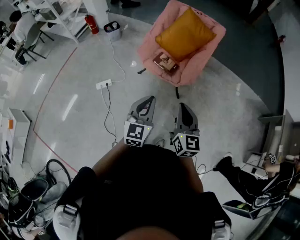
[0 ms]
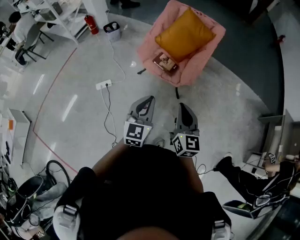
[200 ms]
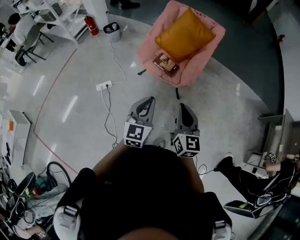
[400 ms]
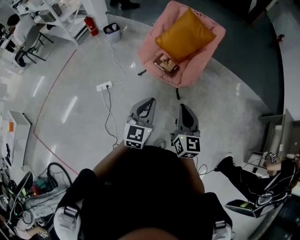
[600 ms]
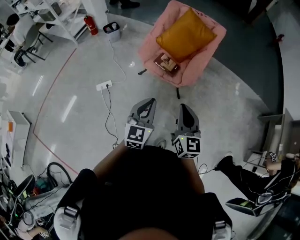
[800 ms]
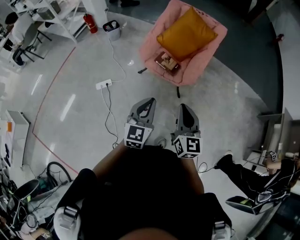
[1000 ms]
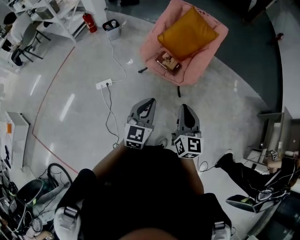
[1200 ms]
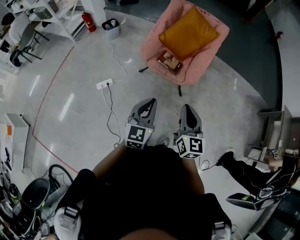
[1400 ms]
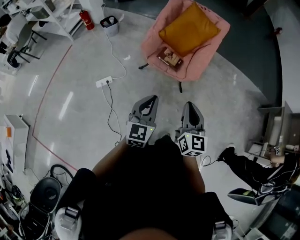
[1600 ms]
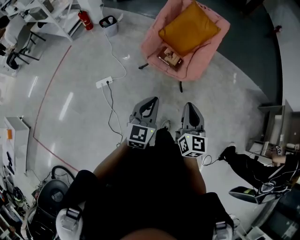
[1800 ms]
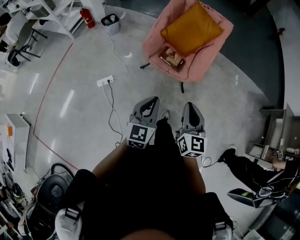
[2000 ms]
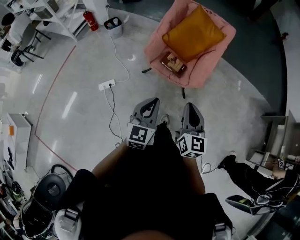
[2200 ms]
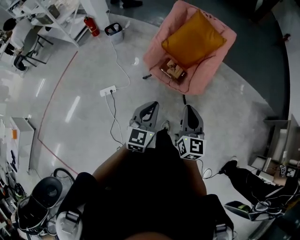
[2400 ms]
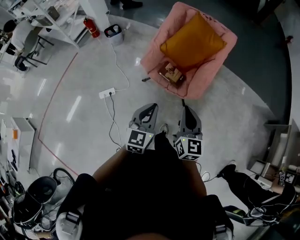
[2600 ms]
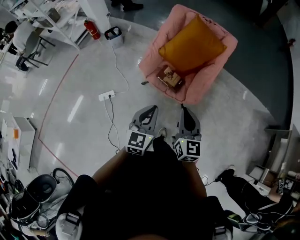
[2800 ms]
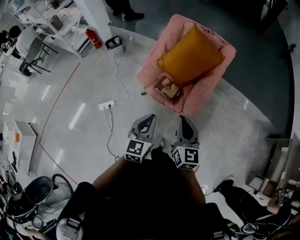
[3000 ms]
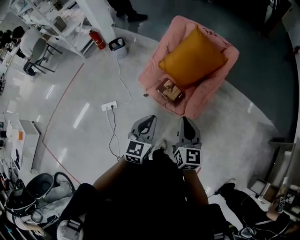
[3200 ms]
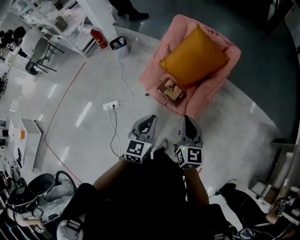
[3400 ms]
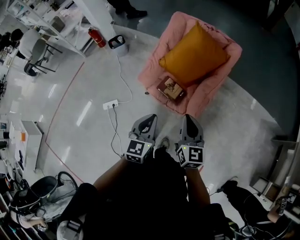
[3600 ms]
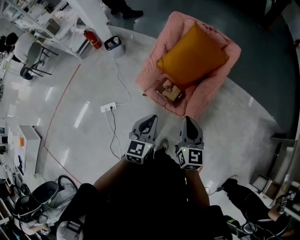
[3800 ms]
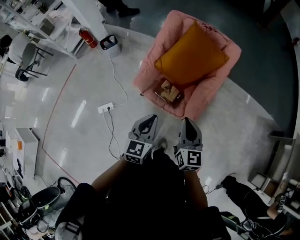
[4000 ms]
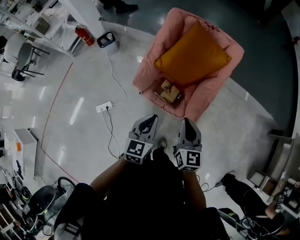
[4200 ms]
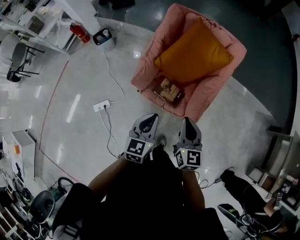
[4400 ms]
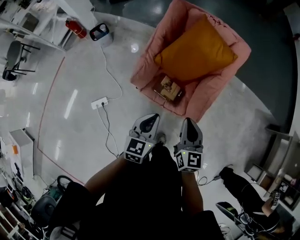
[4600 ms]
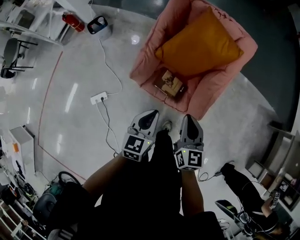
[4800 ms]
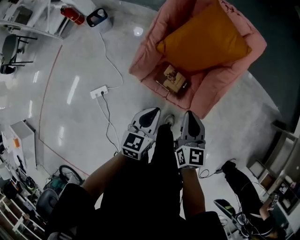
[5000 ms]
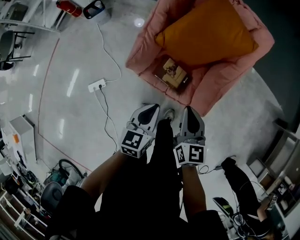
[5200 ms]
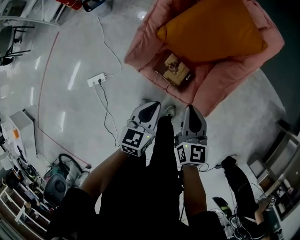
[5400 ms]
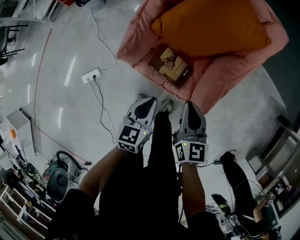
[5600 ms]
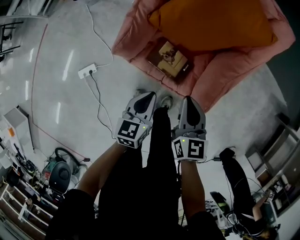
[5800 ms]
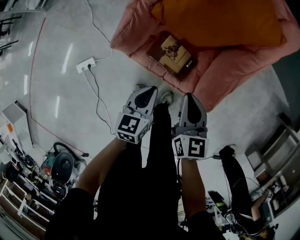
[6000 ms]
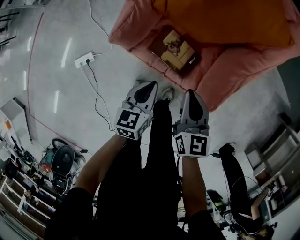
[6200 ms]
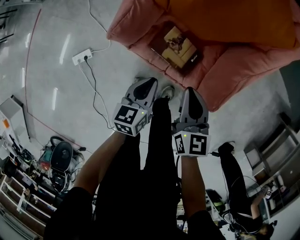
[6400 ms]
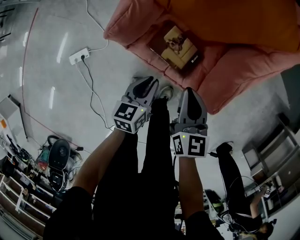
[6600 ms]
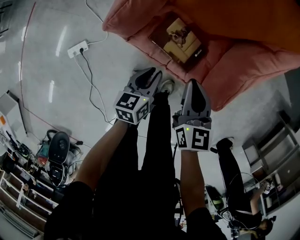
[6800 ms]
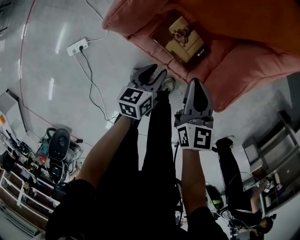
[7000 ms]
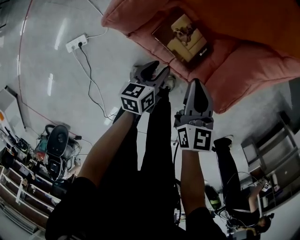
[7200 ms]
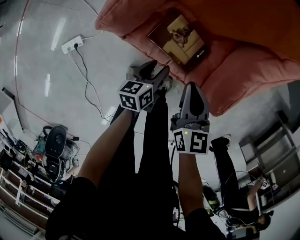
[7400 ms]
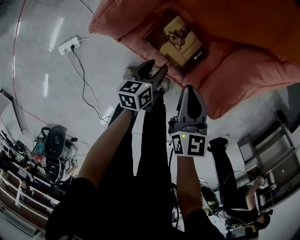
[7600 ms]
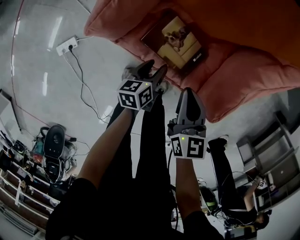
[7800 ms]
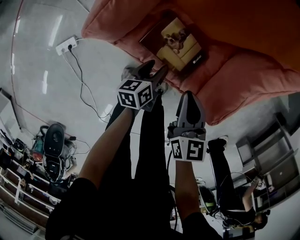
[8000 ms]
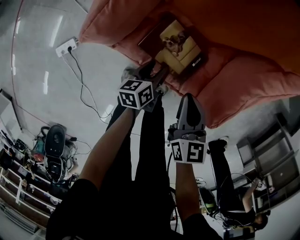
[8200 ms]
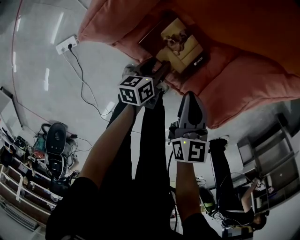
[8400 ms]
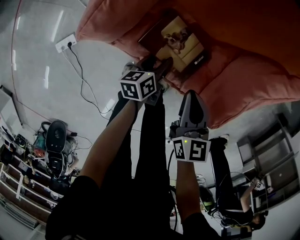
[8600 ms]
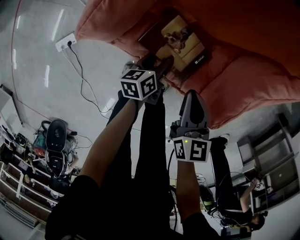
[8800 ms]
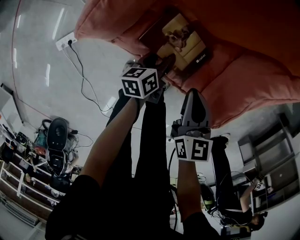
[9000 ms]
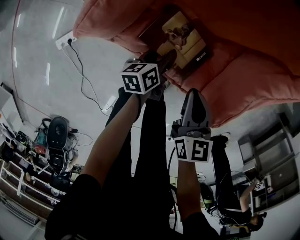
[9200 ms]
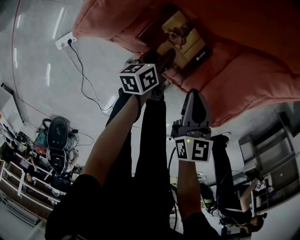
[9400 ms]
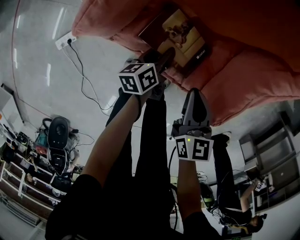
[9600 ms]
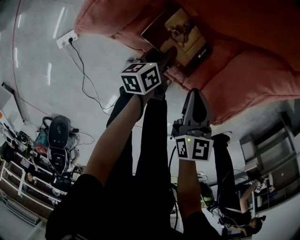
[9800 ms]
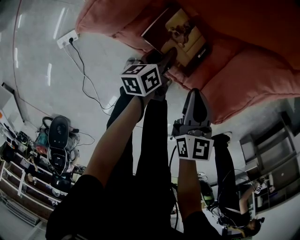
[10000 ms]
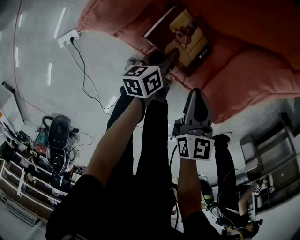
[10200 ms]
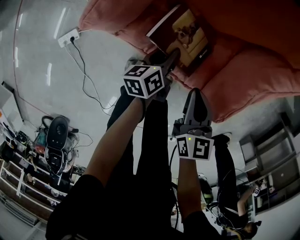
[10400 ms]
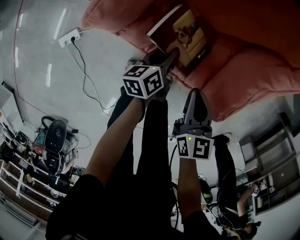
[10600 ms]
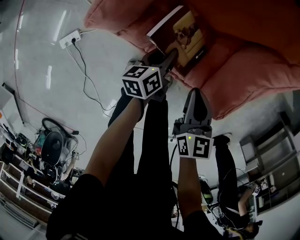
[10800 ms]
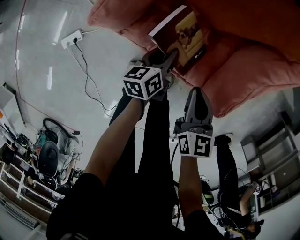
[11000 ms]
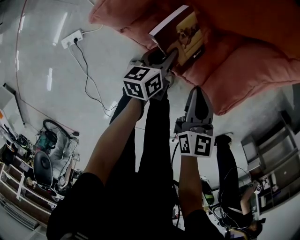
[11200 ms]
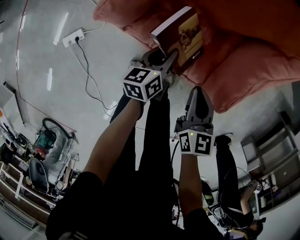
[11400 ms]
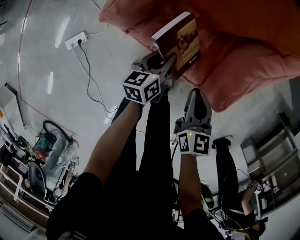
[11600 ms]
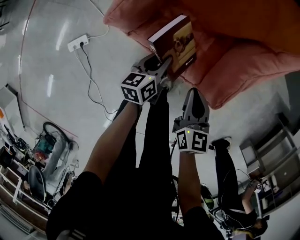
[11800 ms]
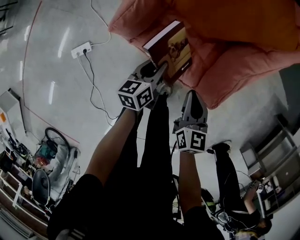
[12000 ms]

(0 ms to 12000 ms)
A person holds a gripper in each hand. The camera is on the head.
0 ms - 1600 ms: Both grippers travel together to the left, some 10 cm.
1600 ms - 3000 ms: The right gripper goes about 20 cm forward, while the left gripper is displaced forward and to the right by some 20 cm.
3000 ms - 4400 ms: Both grippers move forward, about 15 cm.
4400 ms - 6000 ms: The left gripper is displaced downward by roughly 30 cm, and turns by about 20 degrees. The right gripper goes about 30 cm downward and forward.
6000 ms - 7600 ms: The left gripper is displaced downward by approximately 20 cm, rotates roughly 20 degrees, and opens its fingers. The right gripper moves downward, some 15 cm.
7600 ms - 9000 ms: The left gripper is displaced downward by roughly 5 cm. Meanwhile the right gripper shifts by approximately 5 cm.
9000 ms - 10400 ms: The left gripper closes up.
10400 ms - 12000 ms: The right gripper travels upward by approximately 10 cm; the left gripper is displaced upward by approximately 15 cm.

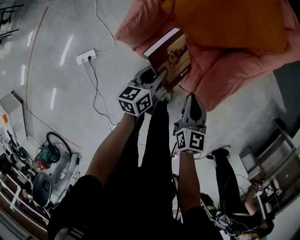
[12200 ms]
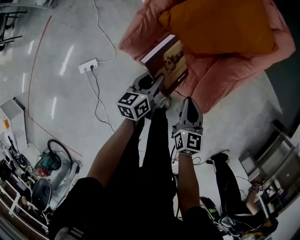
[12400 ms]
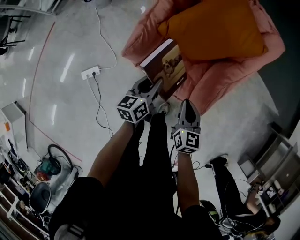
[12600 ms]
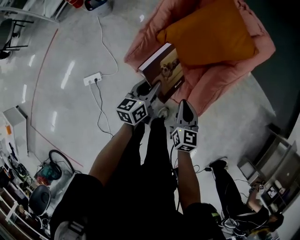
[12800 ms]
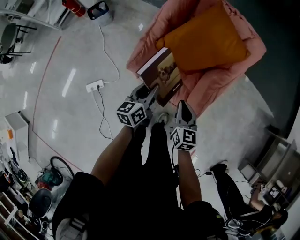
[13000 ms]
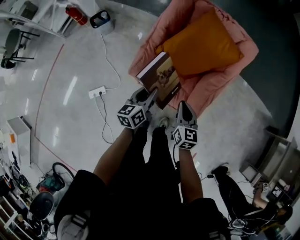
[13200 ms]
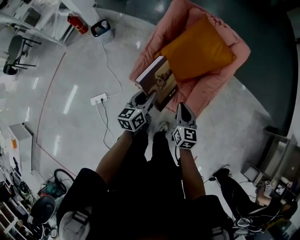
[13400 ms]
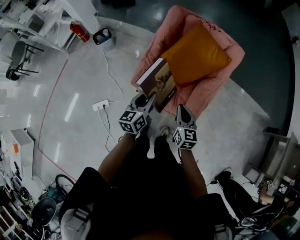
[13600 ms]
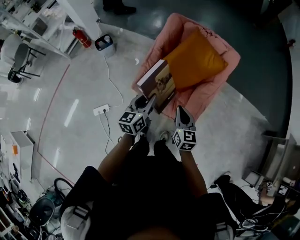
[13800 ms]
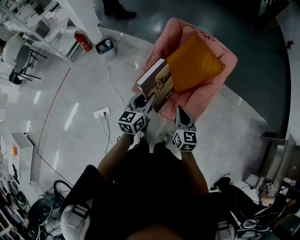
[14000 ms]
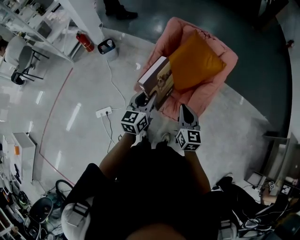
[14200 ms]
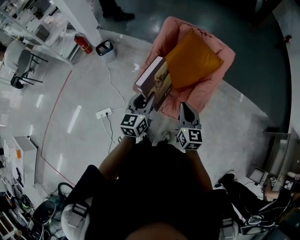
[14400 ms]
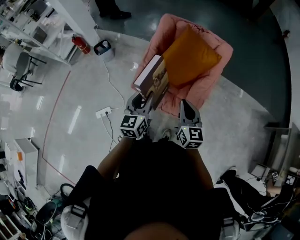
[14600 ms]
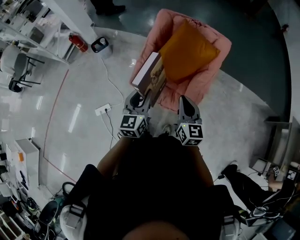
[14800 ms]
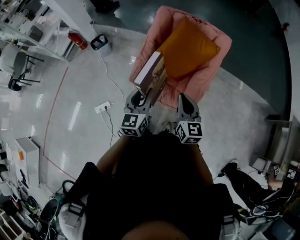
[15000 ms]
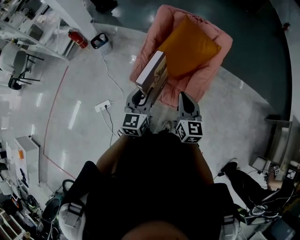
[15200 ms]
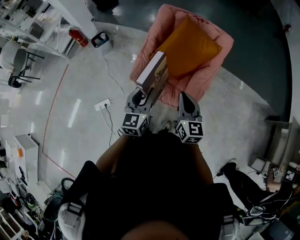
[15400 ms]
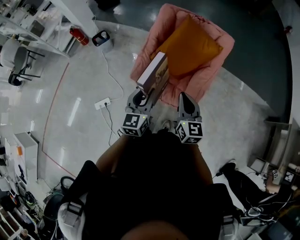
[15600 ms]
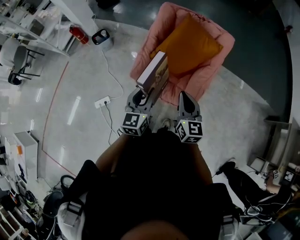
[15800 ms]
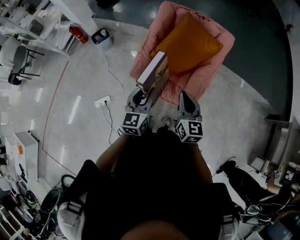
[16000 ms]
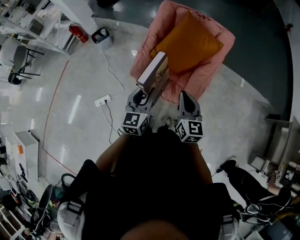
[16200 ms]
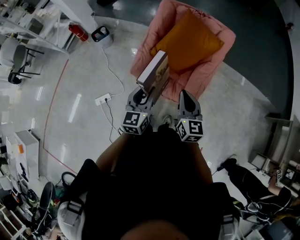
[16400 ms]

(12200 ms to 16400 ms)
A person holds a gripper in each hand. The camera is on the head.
12200 ms - 13600 ms: Both grippers travel together upward, about 25 cm.
13600 ms - 15000 ms: The left gripper travels upward and backward by about 10 cm. Meanwhile the right gripper travels upward by some 10 cm.
15000 ms - 16400 ms: The grippers make only small movements.

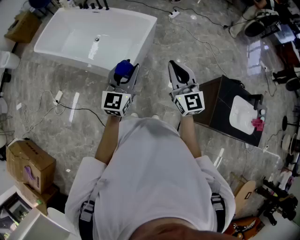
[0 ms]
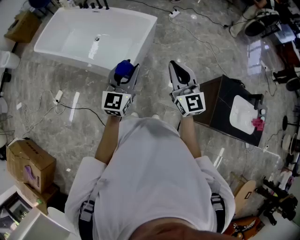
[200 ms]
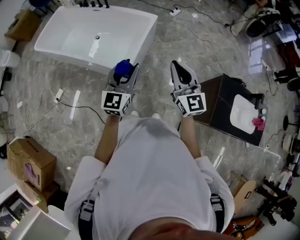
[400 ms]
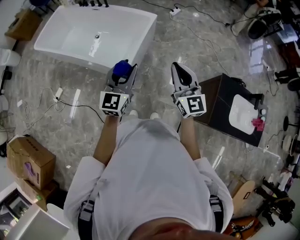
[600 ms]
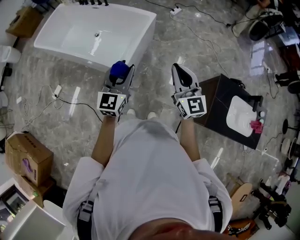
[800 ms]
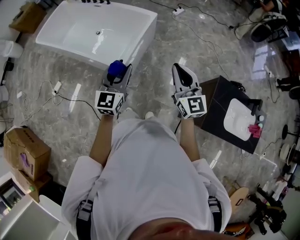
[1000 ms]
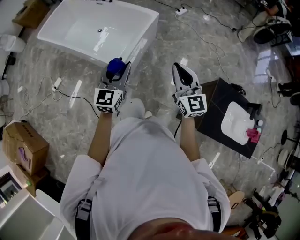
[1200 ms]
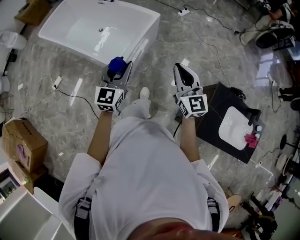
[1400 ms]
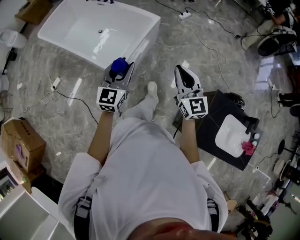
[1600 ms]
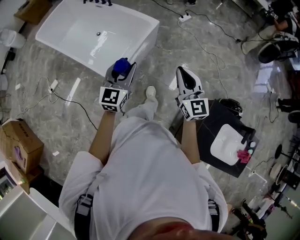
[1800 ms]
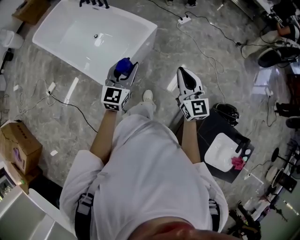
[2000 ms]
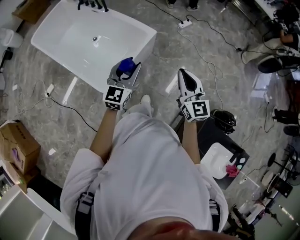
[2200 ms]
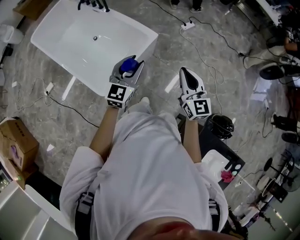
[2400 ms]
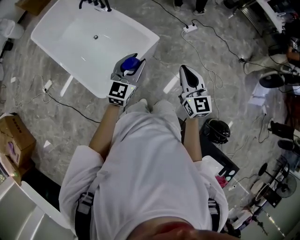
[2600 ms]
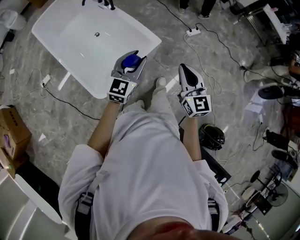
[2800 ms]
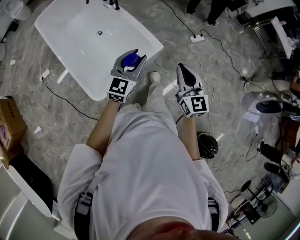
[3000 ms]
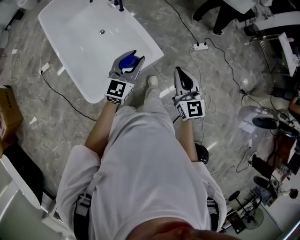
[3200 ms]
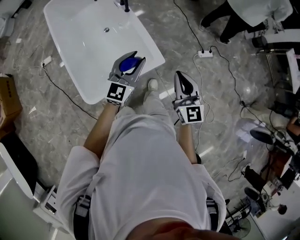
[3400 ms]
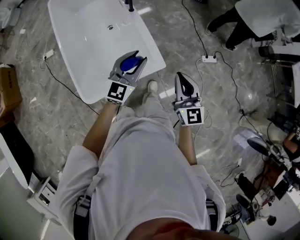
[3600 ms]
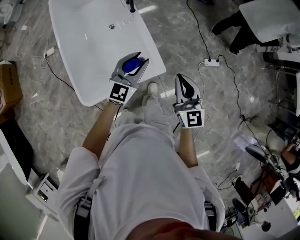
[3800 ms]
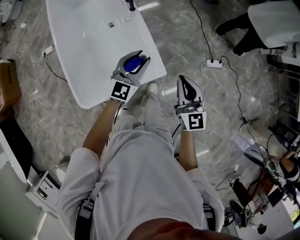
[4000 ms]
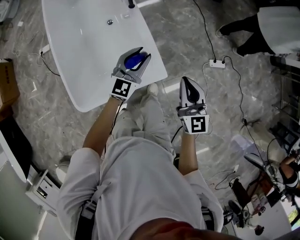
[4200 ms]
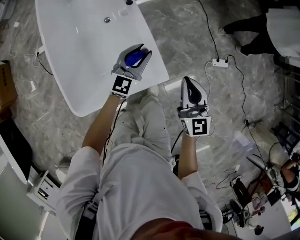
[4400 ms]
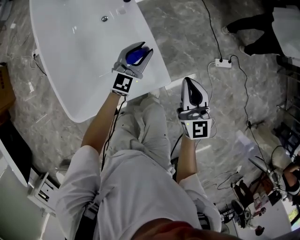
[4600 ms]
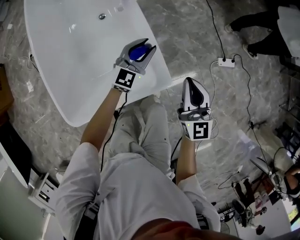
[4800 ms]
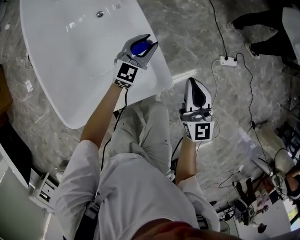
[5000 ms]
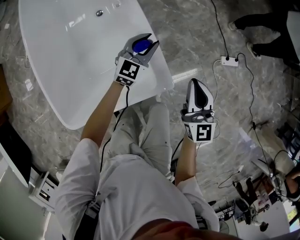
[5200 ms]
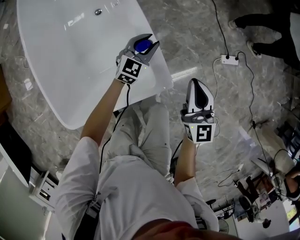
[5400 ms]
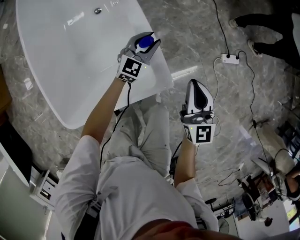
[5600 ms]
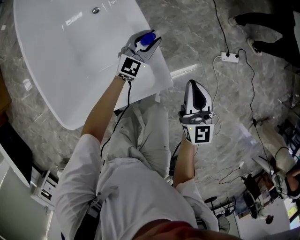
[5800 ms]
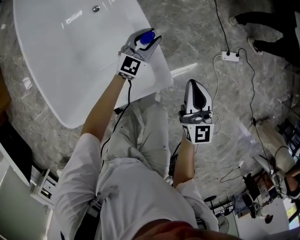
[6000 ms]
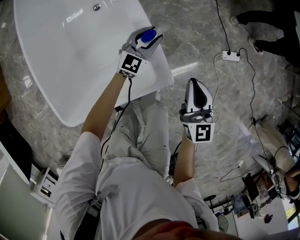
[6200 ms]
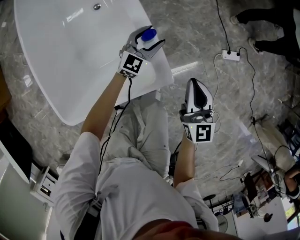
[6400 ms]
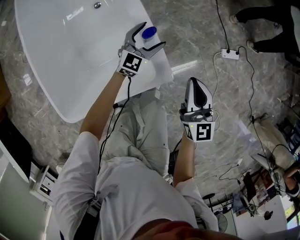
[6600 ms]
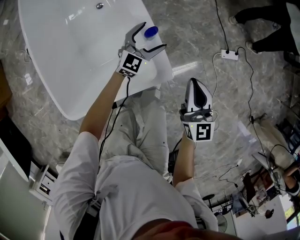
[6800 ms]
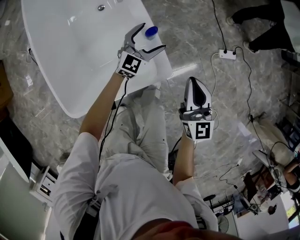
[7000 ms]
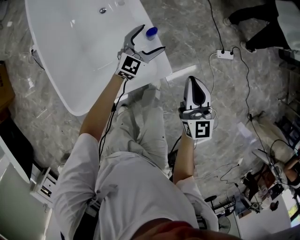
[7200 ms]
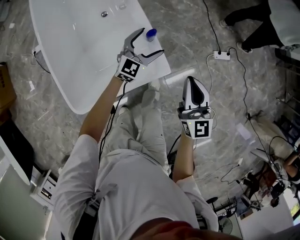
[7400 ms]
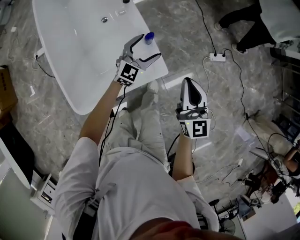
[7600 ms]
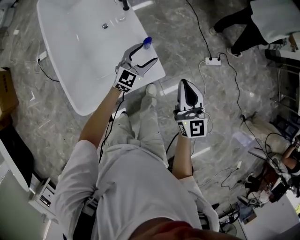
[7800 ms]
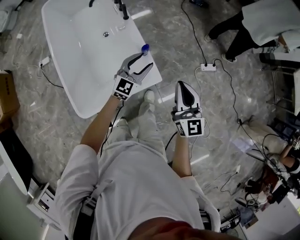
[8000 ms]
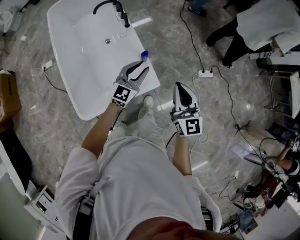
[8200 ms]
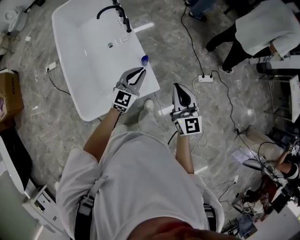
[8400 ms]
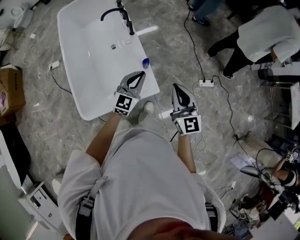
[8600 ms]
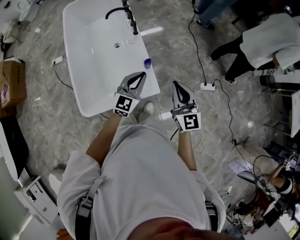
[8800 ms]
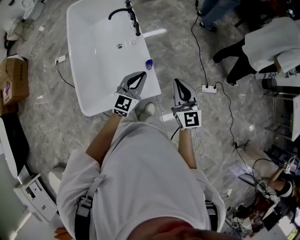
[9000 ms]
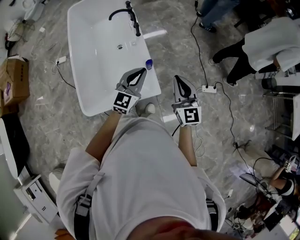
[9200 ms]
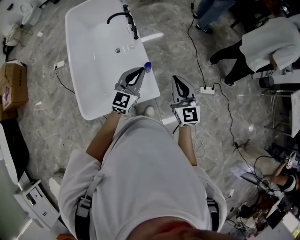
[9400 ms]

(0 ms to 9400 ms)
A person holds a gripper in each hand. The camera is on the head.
0 ms - 1600 ms: Both grippers move to the right and forward, about 15 cm.
1600 ms - 3200 ms: The pair of grippers is taken forward, about 50 cm. The right gripper rotates about 20 degrees.
3200 ms - 4800 ms: Both grippers move downward and forward, about 40 cm.
4800 ms - 6200 ms: The left gripper goes about 10 cm downward; the right gripper is displaced downward by some 5 cm.
6200 ms - 7800 ms: The right gripper is displaced upward by about 20 cm, while the left gripper travels upward and backward by approximately 25 cm, and opens up.
7800 ms - 9400 ms: The right gripper shifts roughly 10 cm upward and forward, while the left gripper goes about 20 cm upward, and closes its fingers.
